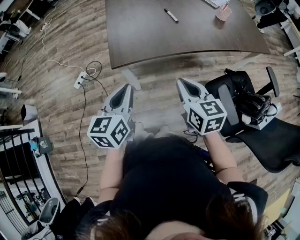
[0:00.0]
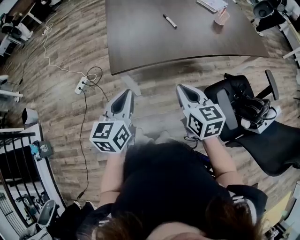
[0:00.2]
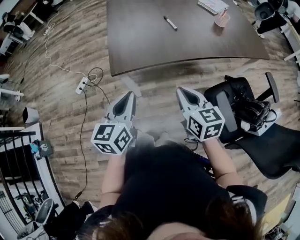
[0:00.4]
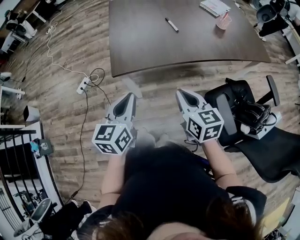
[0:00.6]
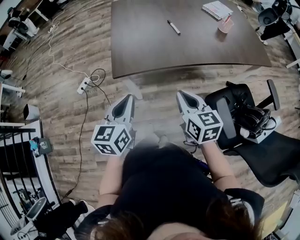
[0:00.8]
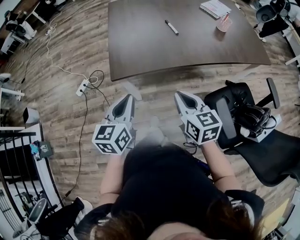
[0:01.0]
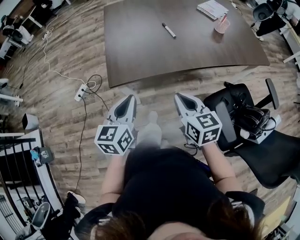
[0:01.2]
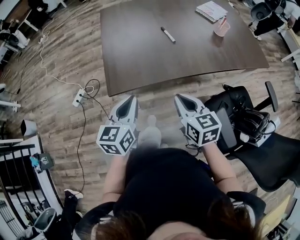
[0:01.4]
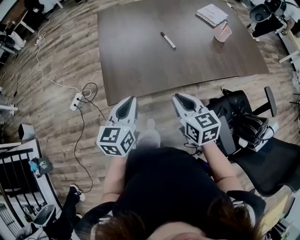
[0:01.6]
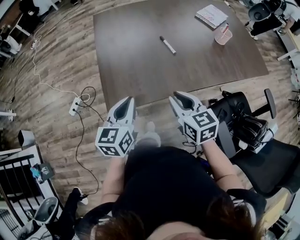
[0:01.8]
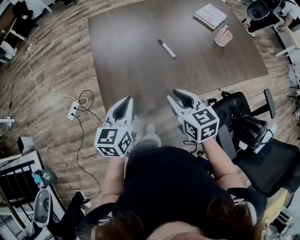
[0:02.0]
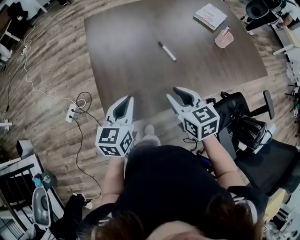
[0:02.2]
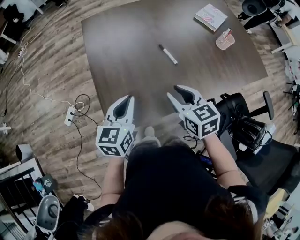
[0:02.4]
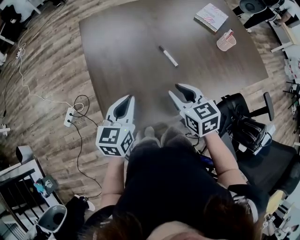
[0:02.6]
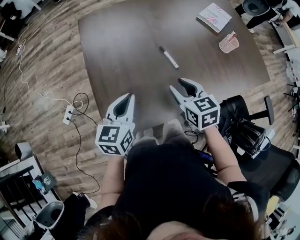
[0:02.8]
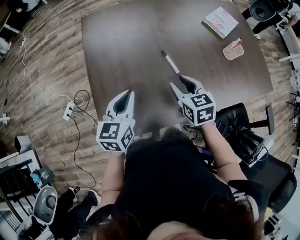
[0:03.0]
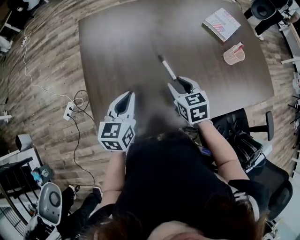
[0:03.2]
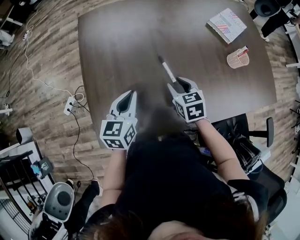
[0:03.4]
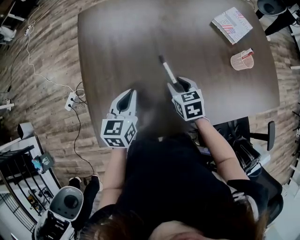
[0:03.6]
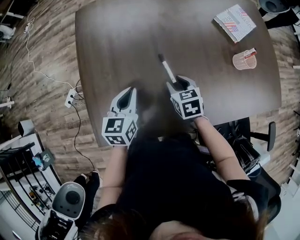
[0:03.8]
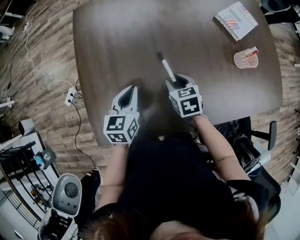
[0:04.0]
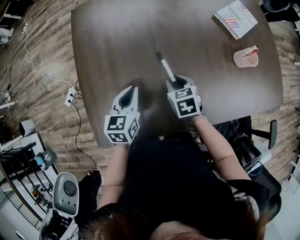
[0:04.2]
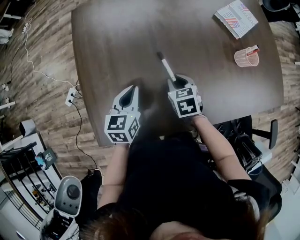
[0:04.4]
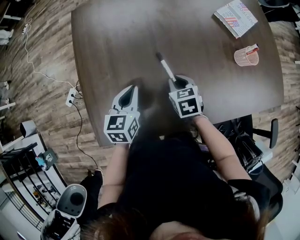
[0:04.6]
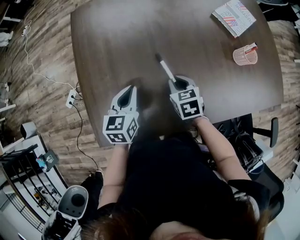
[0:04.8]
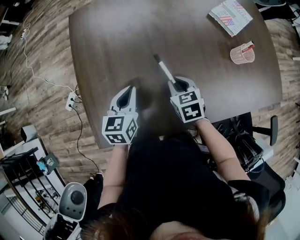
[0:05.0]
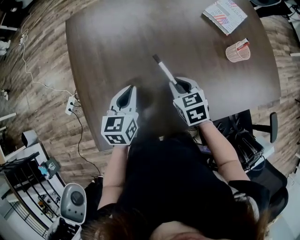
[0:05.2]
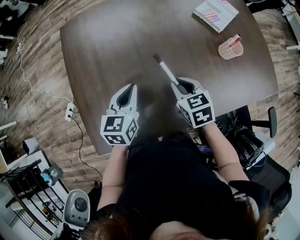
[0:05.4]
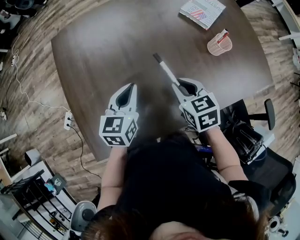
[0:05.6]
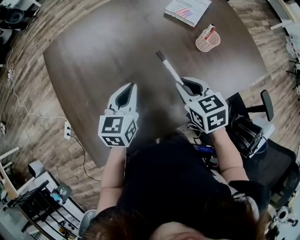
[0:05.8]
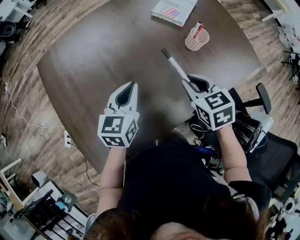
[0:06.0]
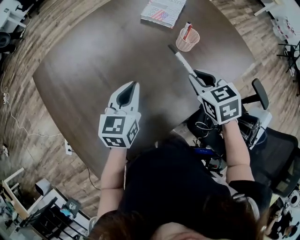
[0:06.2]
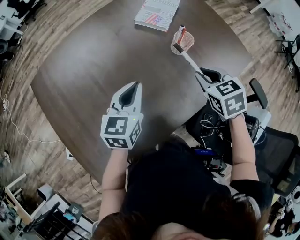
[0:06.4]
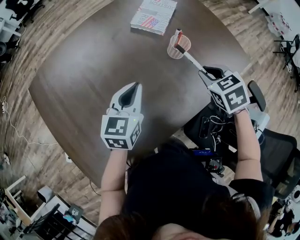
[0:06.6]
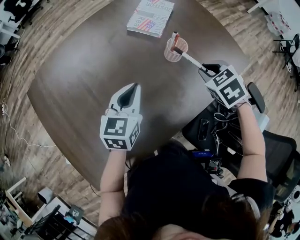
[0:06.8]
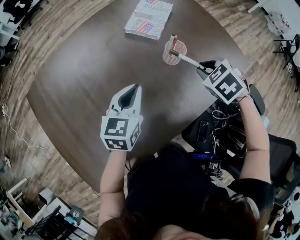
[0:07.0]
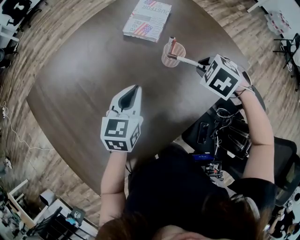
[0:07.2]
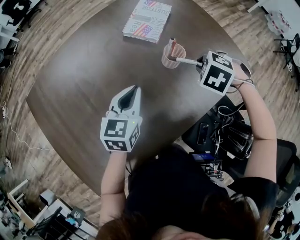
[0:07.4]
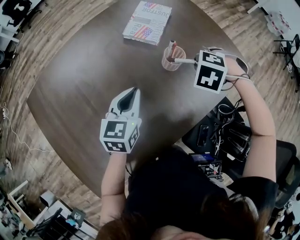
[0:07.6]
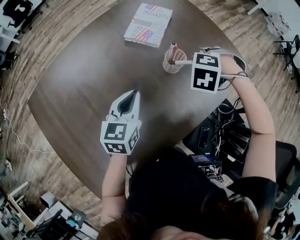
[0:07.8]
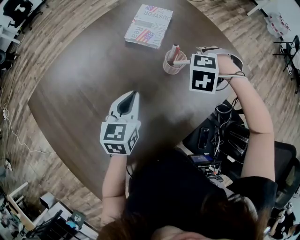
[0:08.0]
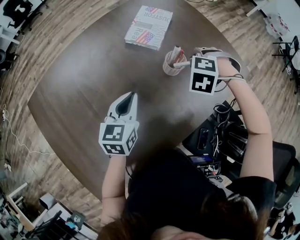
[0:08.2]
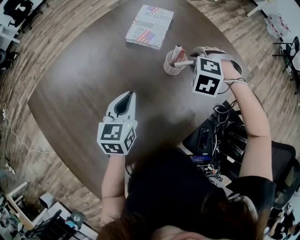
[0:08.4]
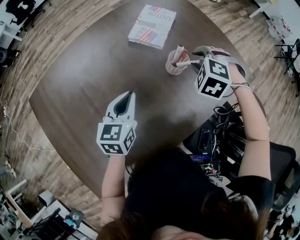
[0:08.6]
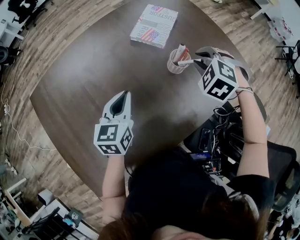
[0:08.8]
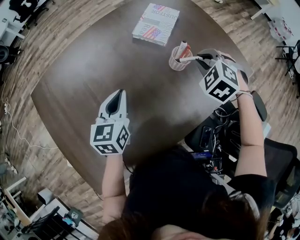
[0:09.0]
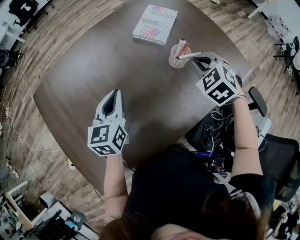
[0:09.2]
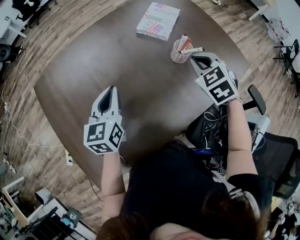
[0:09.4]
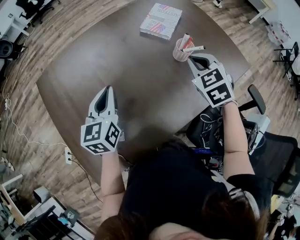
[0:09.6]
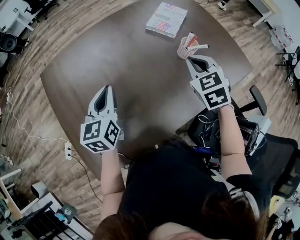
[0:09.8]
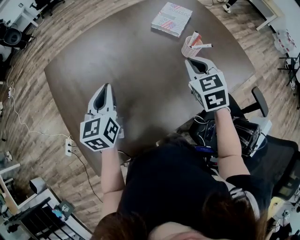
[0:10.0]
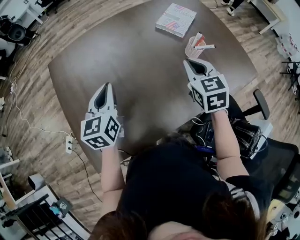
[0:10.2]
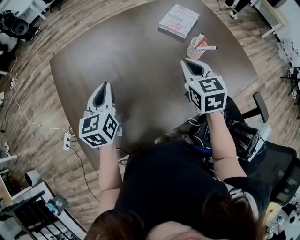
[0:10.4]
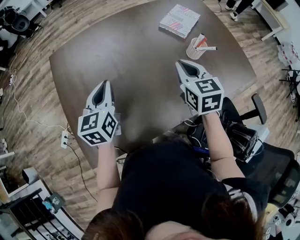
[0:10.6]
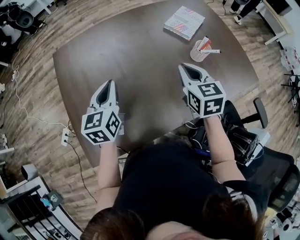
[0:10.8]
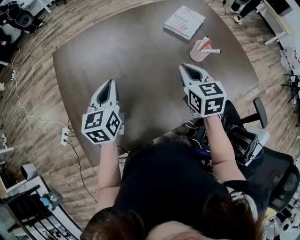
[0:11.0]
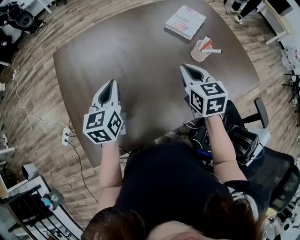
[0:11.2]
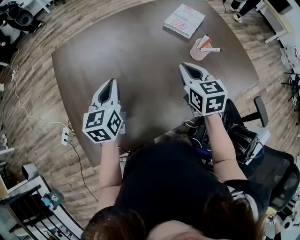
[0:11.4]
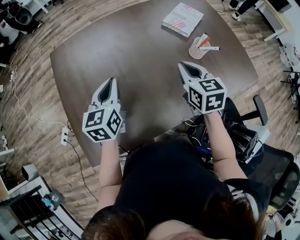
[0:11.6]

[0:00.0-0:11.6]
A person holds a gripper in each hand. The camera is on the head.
0:00.0 to 0:01.4: The two grippers go about 10 cm forward.
0:01.4 to 0:02.8: The grippers both shift forward by roughly 25 cm. The right gripper opens.
0:02.8 to 0:04.4: The right gripper is displaced downward, forward and to the right by roughly 20 cm. Meanwhile the left gripper goes approximately 15 cm forward, downward and to the right.
0:04.4 to 0:05.8: The right gripper moves upward and to the right, some 20 cm, while the left gripper is displaced to the right and upward by some 15 cm.
0:05.8 to 0:07.2: The two grippers go some 20 cm to the right and forward. The right gripper tips its fingers downward by approximately 30 degrees.
0:07.2 to 0:08.8: The right gripper shifts by approximately 5 cm, and rotates about 20 degrees. The left gripper shifts by some 5 cm.
0:08.8 to 0:10.2: The right gripper goes approximately 20 cm to the left, backward and upward, twists some 40 degrees clockwise, seen from behind, and closes; the left gripper is displaced to the left and backward by roughly 20 cm, and rotates some 20 degrees.
0:10.2 to 0:11.6: The grippers stay close to where they were, moving slightly.

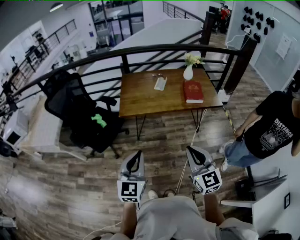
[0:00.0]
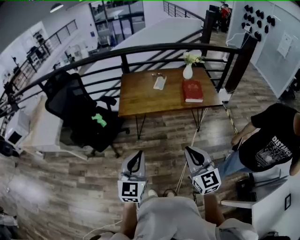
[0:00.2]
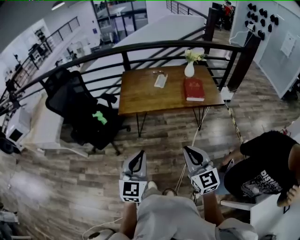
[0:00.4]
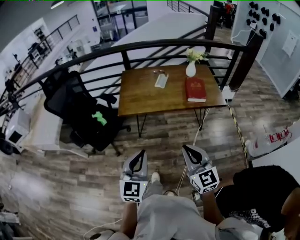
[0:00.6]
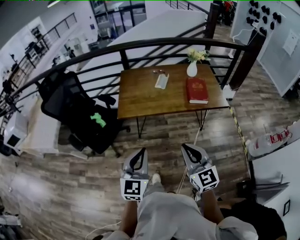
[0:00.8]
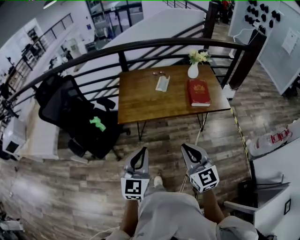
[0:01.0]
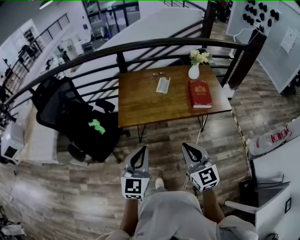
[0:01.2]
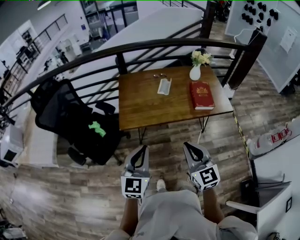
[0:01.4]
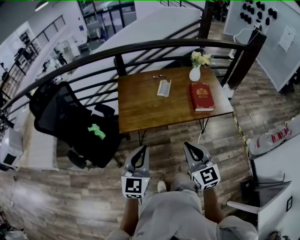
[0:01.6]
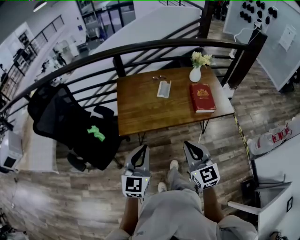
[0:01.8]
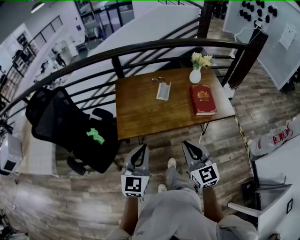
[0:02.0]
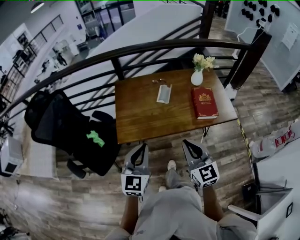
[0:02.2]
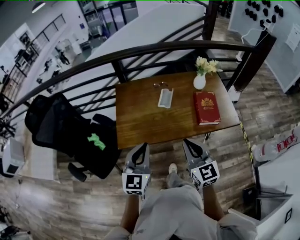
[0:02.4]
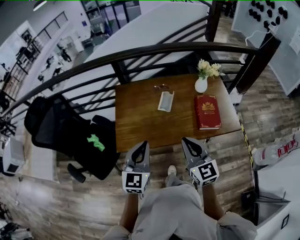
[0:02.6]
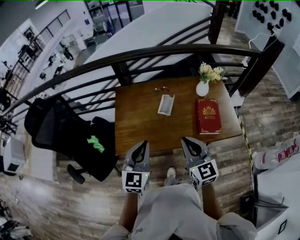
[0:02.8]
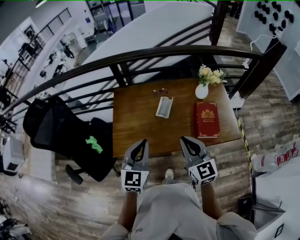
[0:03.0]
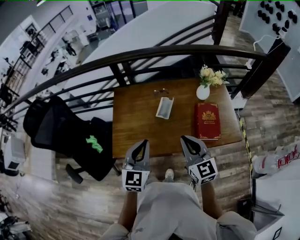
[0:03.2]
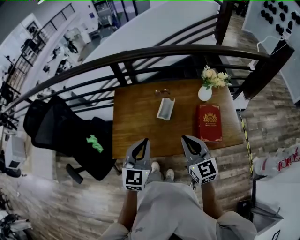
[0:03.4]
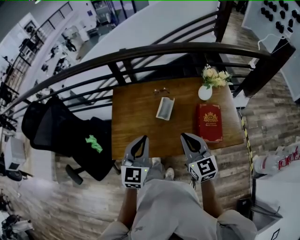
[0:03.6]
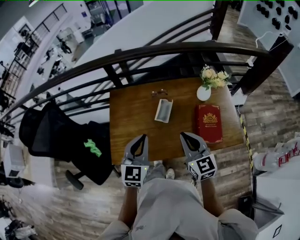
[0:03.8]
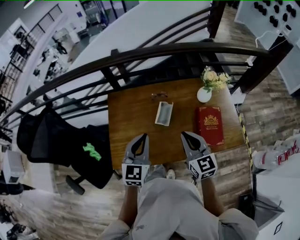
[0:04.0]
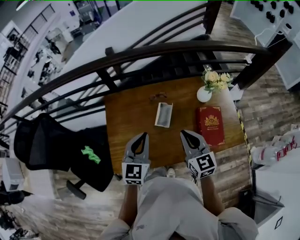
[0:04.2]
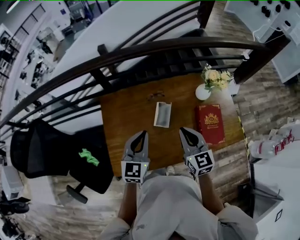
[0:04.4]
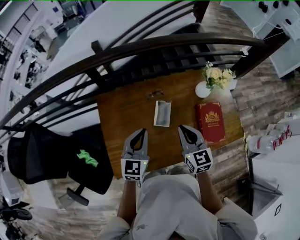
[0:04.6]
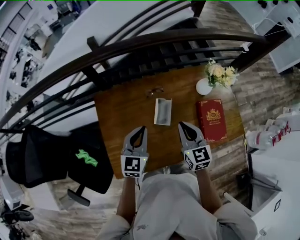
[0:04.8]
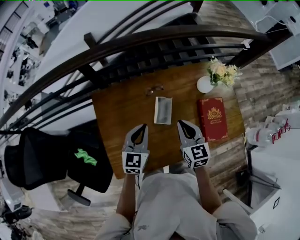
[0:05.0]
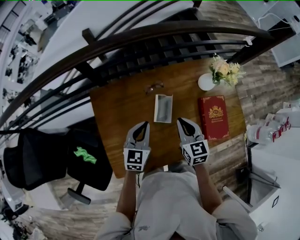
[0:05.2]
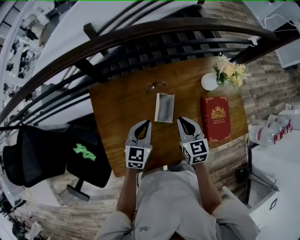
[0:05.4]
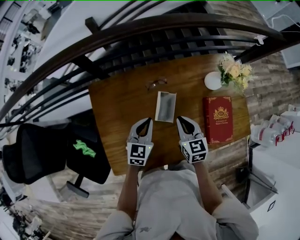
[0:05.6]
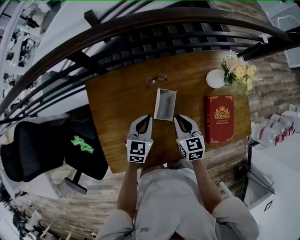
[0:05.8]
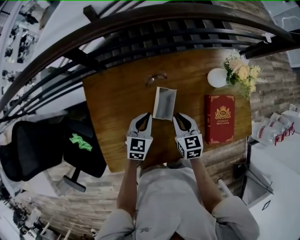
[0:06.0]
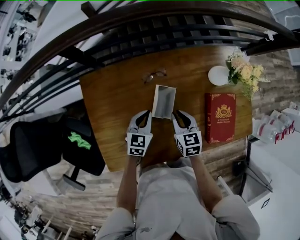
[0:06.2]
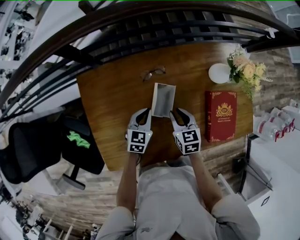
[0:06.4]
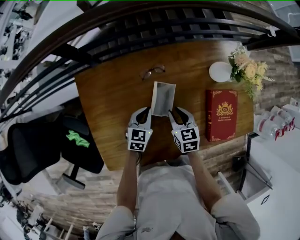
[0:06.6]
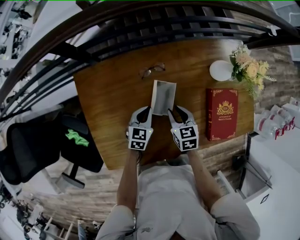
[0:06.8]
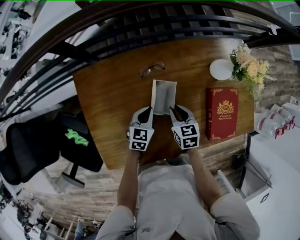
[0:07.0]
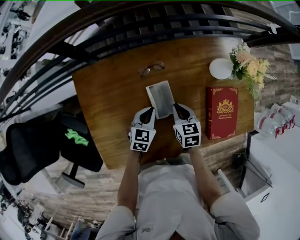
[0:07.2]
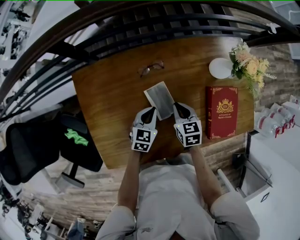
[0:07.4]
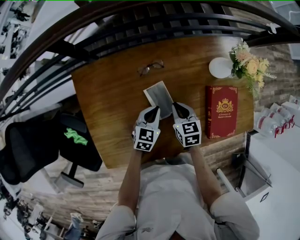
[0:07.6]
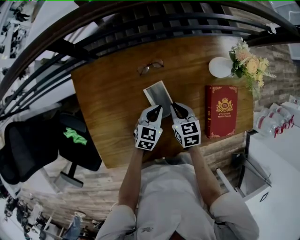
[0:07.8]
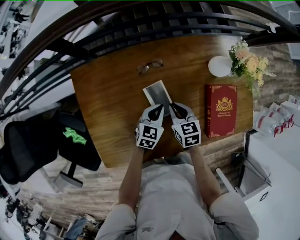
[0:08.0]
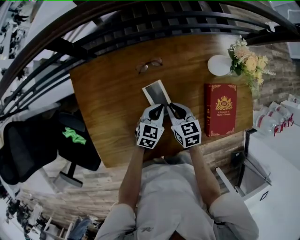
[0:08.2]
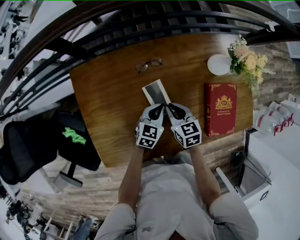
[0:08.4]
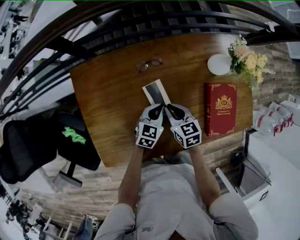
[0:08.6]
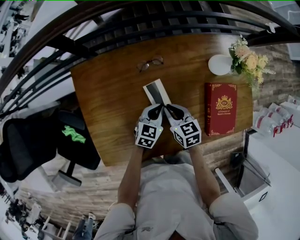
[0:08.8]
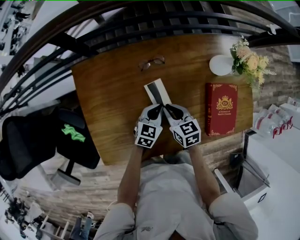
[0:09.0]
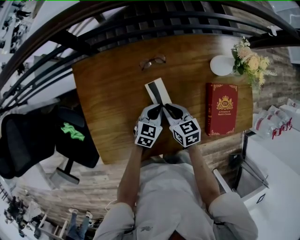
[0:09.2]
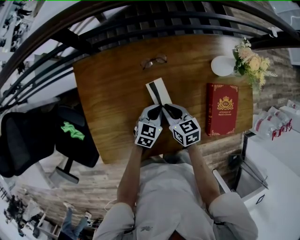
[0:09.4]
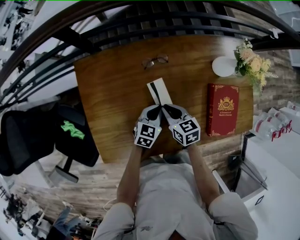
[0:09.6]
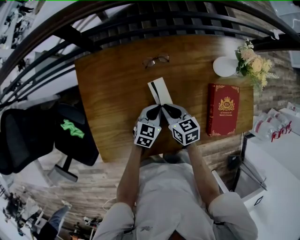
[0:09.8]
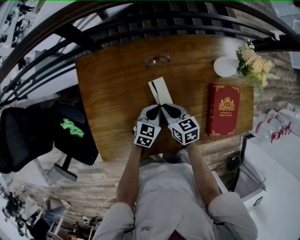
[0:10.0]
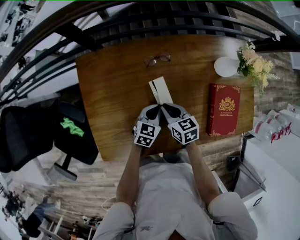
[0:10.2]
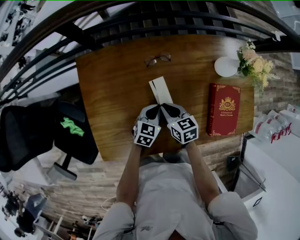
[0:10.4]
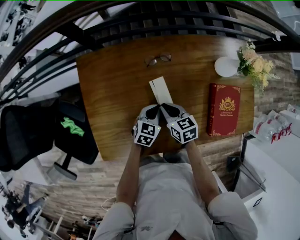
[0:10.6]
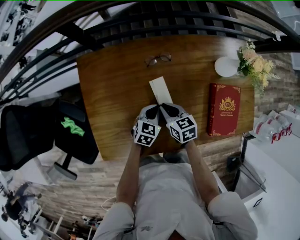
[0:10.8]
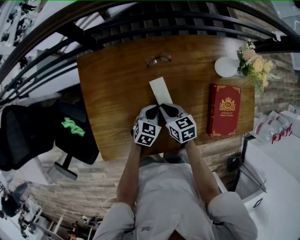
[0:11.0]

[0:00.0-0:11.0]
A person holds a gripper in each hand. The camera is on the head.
0:00.0 to 0:01.6: Both grippers move forward, roughly 20 cm.
0:01.6 to 0:03.2: Both grippers travel together forward, roughly 25 cm.
0:03.2 to 0:04.8: Both grippers move forward and downward, roughly 25 cm. The right gripper changes its angle by some 20 degrees.
0:04.8 to 0:06.2: Both grippers move downward, some 20 cm. The right gripper rotates some 20 degrees.
0:06.2 to 0:07.8: The left gripper moves to the right, about 5 cm.
0:07.8 to 0:09.4: The grippers move only a little.
0:09.4 to 0:11.0: The grippers move only a little.

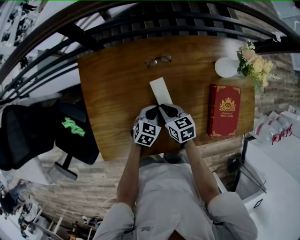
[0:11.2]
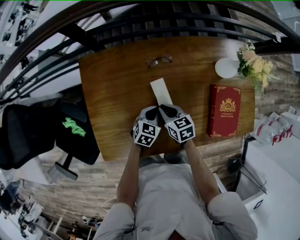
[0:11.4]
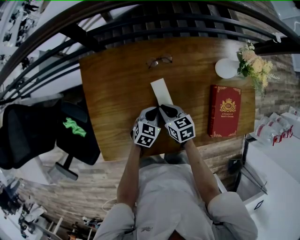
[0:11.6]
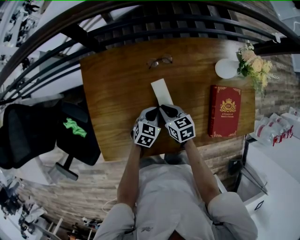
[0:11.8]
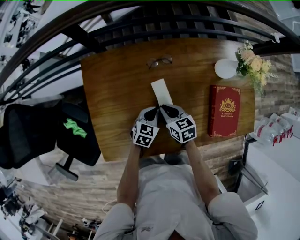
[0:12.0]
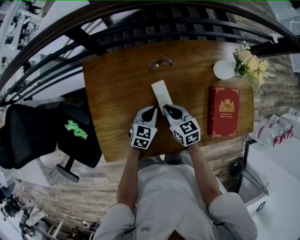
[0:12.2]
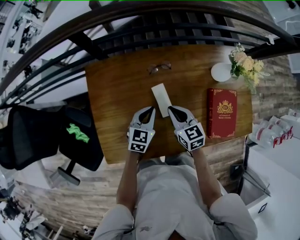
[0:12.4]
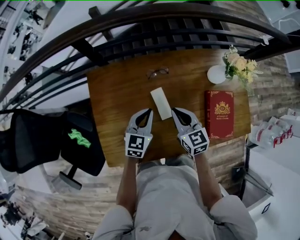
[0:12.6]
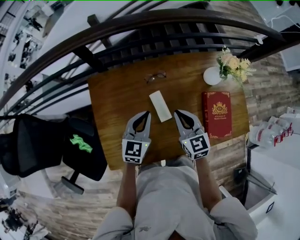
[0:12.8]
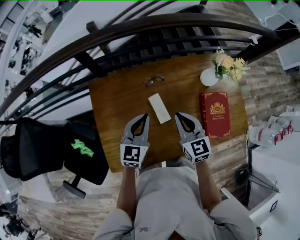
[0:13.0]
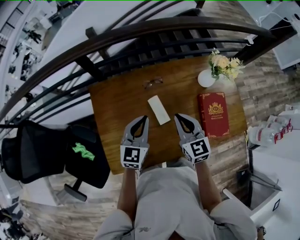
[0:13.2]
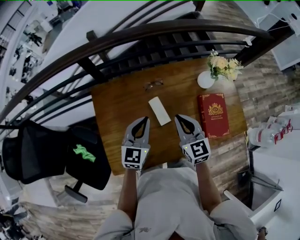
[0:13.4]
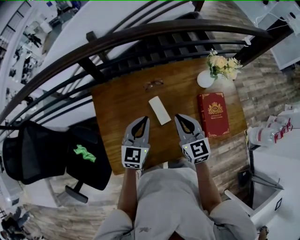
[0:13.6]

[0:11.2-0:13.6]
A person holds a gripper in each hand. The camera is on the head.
0:11.2 to 0:12.4: Both grippers move upward, some 10 cm.
0:12.4 to 0:13.6: The grippers both shift upward by roughly 15 cm. The right gripper turns by approximately 20 degrees, while the left gripper turns by some 20 degrees.
